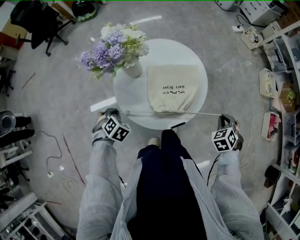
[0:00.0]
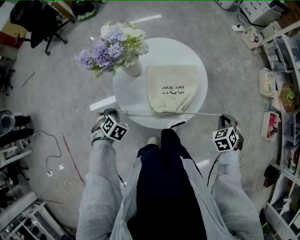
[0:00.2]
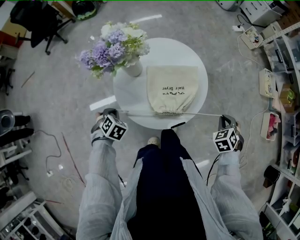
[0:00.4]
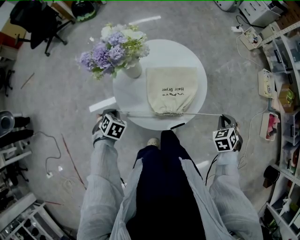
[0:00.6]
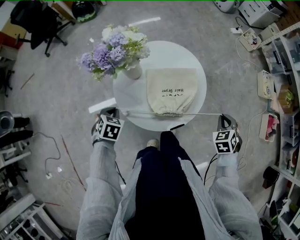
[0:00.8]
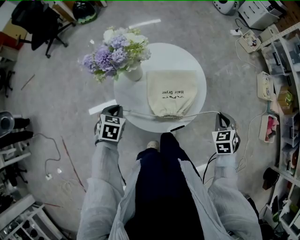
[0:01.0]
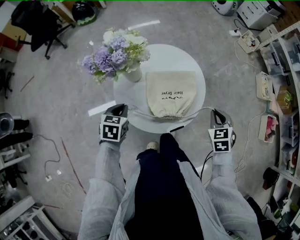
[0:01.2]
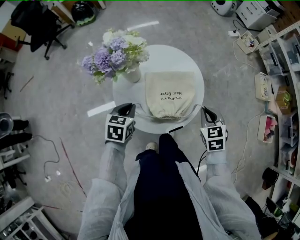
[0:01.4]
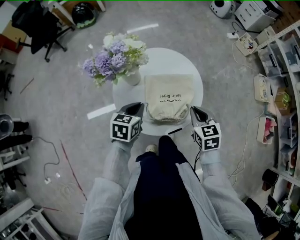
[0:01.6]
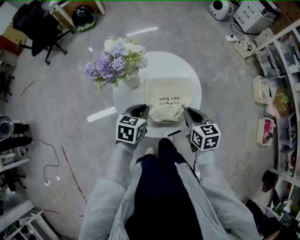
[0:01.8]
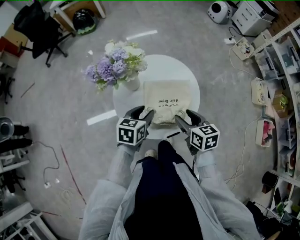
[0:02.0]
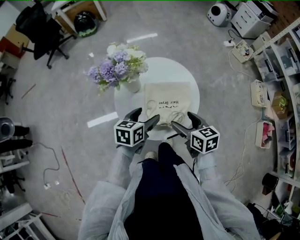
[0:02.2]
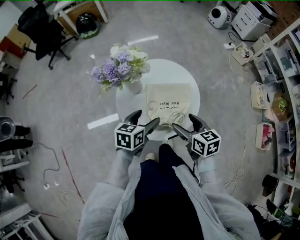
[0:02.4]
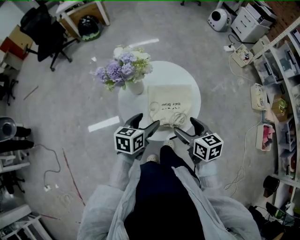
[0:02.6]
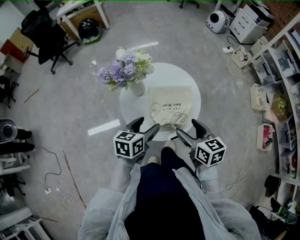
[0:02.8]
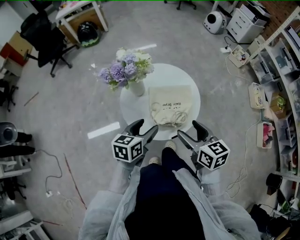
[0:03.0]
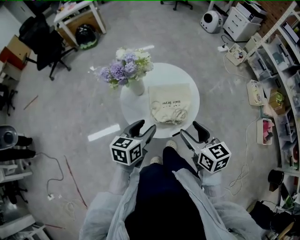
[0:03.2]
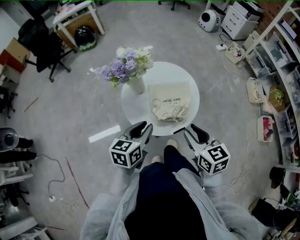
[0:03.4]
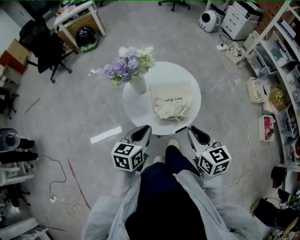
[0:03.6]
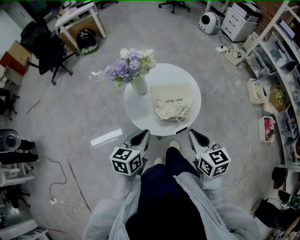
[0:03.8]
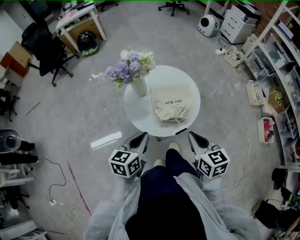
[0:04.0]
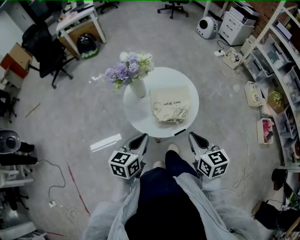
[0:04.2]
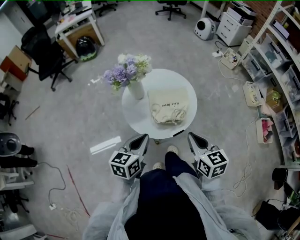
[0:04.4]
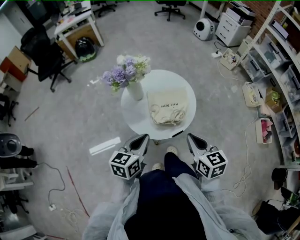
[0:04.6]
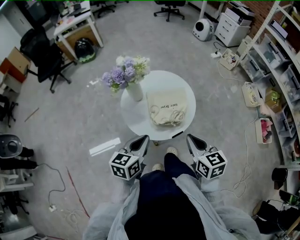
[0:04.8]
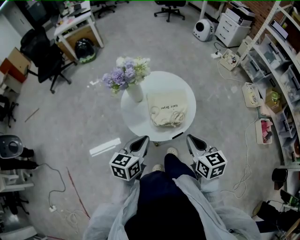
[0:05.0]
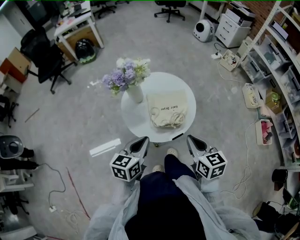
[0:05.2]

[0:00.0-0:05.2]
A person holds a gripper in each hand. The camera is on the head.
0:00.0 to 0:01.8: The left gripper heads to the right, upward and forward, covering some 20 cm, and turns by roughly 50 degrees. The right gripper moves to the left and upward, some 20 cm, and changes its angle by some 60 degrees.
0:01.8 to 0:03.4: The two grippers go roughly 15 cm backward and upward. The right gripper opens and closes again, while the left gripper opens, then closes again.
0:03.4 to 0:05.2: The right gripper closes its fingers.

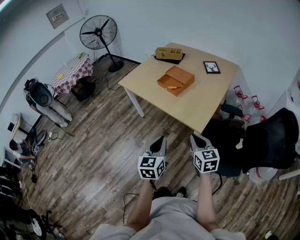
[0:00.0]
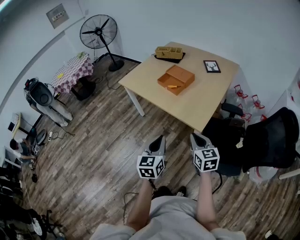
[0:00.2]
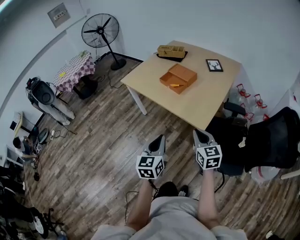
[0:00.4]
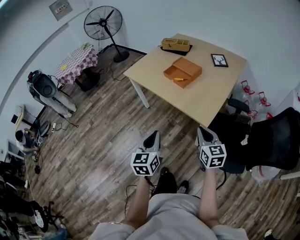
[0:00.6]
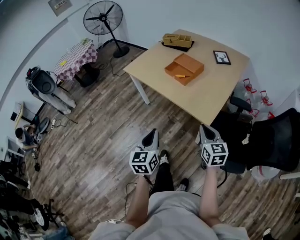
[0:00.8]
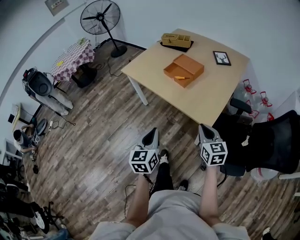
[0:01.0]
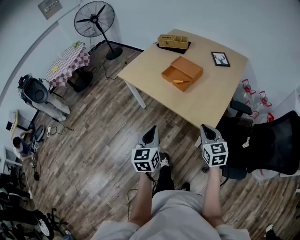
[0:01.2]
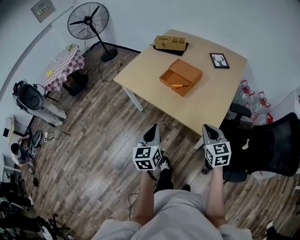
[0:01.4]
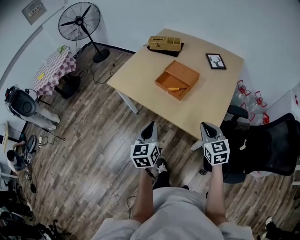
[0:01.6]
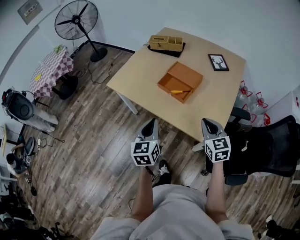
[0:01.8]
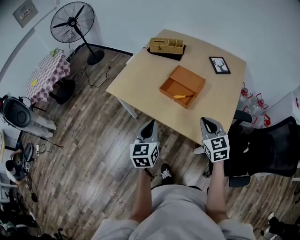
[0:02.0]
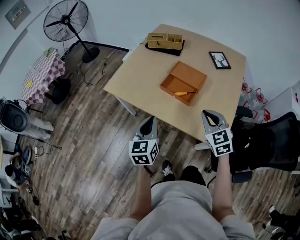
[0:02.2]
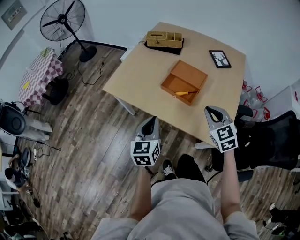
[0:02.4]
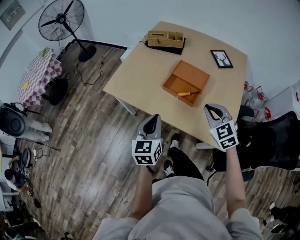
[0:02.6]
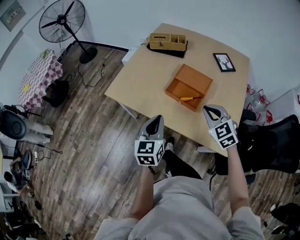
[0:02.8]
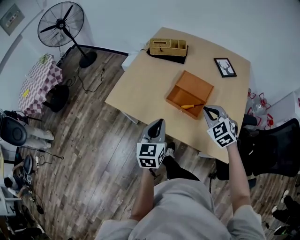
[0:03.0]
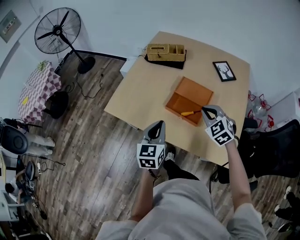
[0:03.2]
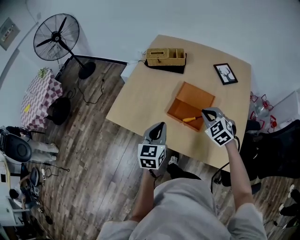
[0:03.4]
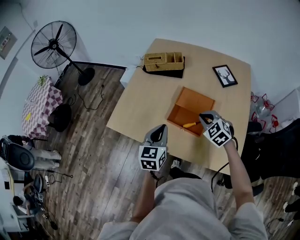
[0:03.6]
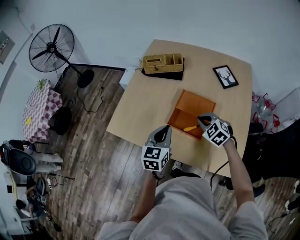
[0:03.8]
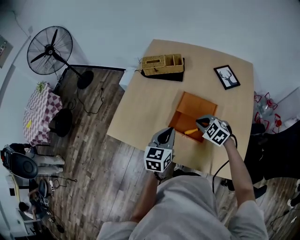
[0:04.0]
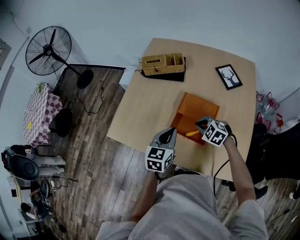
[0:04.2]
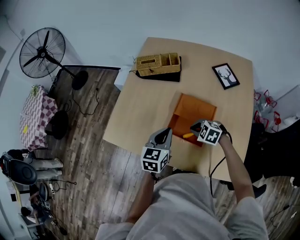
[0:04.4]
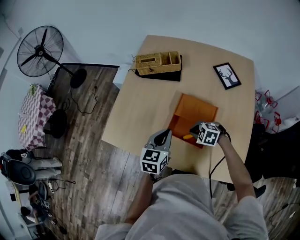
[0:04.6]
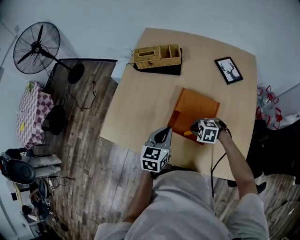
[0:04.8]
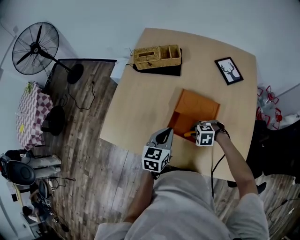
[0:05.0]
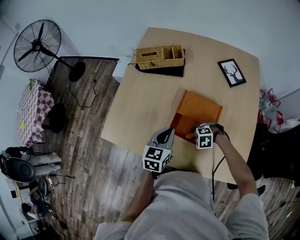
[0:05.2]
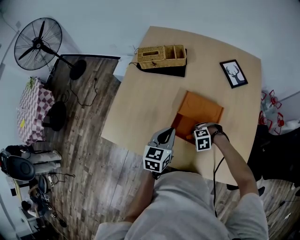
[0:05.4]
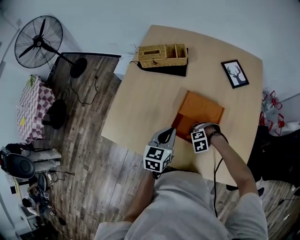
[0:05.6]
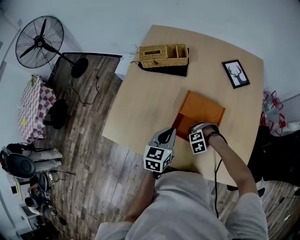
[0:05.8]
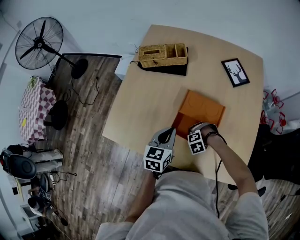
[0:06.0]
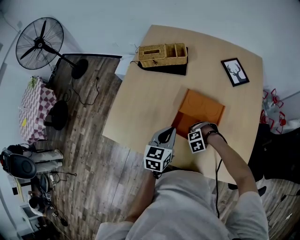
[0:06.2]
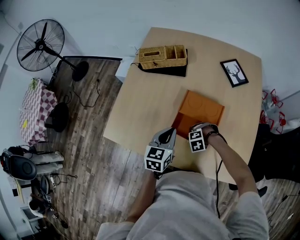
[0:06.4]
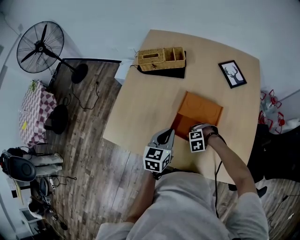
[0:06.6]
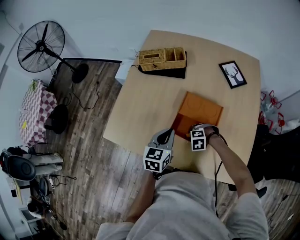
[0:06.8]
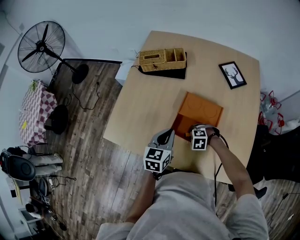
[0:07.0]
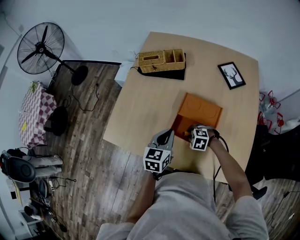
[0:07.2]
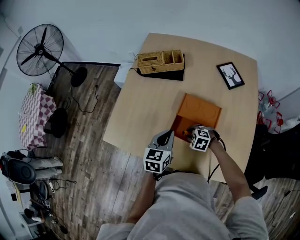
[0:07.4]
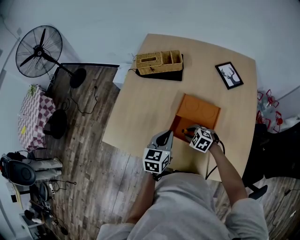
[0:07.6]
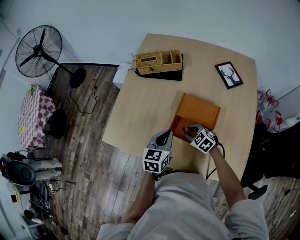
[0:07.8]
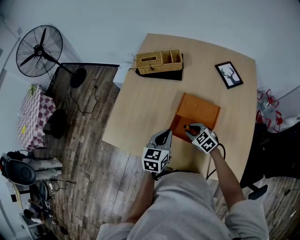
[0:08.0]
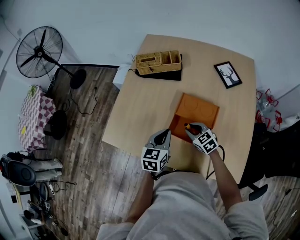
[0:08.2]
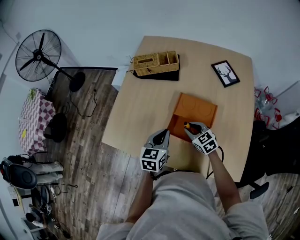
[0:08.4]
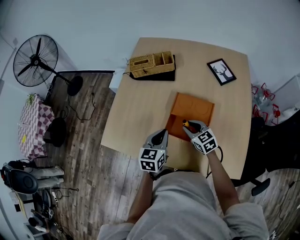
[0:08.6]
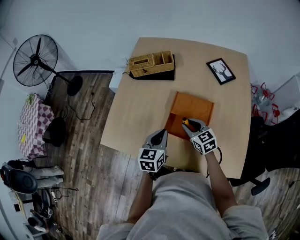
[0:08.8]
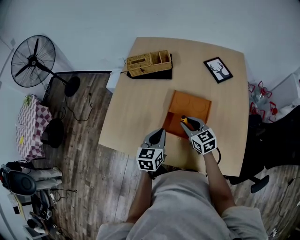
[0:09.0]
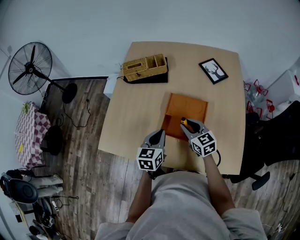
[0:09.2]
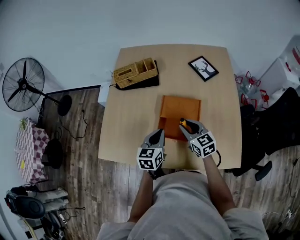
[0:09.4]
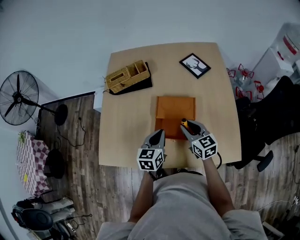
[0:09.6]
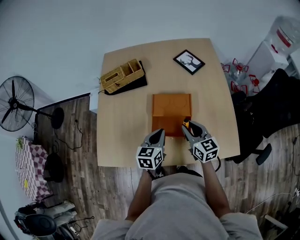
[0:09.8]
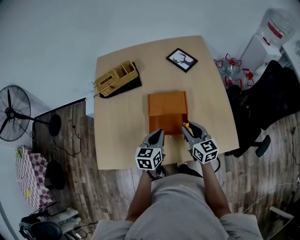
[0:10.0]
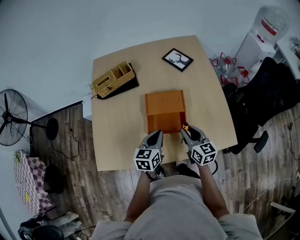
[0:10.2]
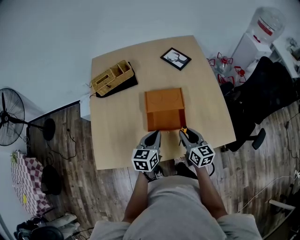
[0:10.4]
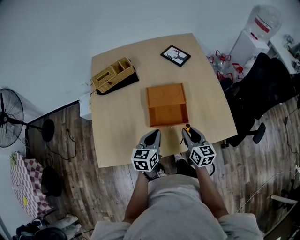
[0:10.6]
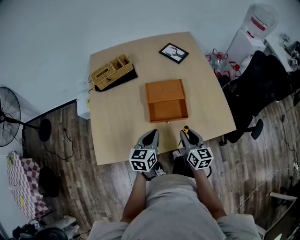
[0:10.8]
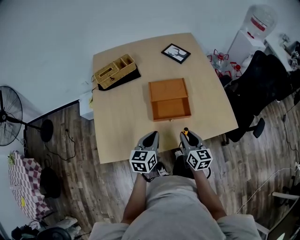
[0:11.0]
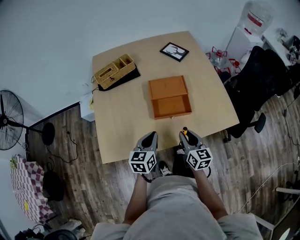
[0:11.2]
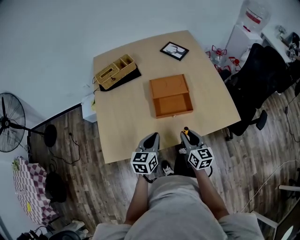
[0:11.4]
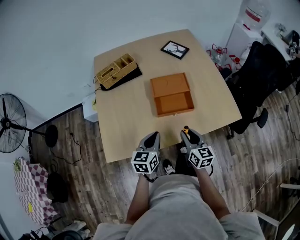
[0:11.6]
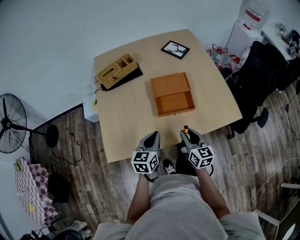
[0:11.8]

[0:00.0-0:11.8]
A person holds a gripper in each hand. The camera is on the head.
0:00.0 to 0:01.4: The right gripper shifts about 15 cm forward; the left gripper moves forward and to the left, approximately 20 cm.
0:01.4 to 0:03.0: The left gripper travels forward by some 25 cm; the right gripper shifts approximately 30 cm forward and to the left, and turns by approximately 30 degrees.
0:03.0 to 0:04.4: The right gripper is displaced downward and forward by roughly 20 cm, and turns by about 30 degrees; the left gripper shifts about 20 cm forward.
0:04.4 to 0:06.0: The left gripper is displaced downward by some 5 cm, while the right gripper shifts roughly 15 cm downward, changes its angle by about 50 degrees, and opens its fingers.
0:06.0 to 0:07.4: The right gripper goes approximately 5 cm upward, and turns by about 40 degrees.
0:07.4 to 0:08.8: The right gripper travels upward by about 10 cm, and tips its fingers upward by approximately 40 degrees.
0:08.8 to 0:10.4: The right gripper shifts by some 15 cm, and swivels about 40 degrees. The left gripper changes its angle by some 20 degrees.
0:10.4 to 0:11.8: The two grippers go about 15 cm backward and to the left.

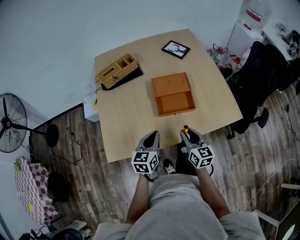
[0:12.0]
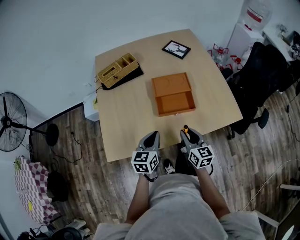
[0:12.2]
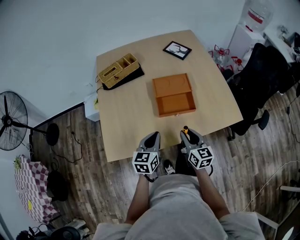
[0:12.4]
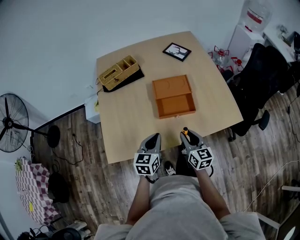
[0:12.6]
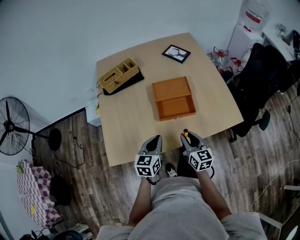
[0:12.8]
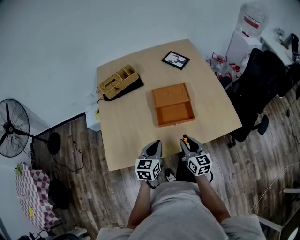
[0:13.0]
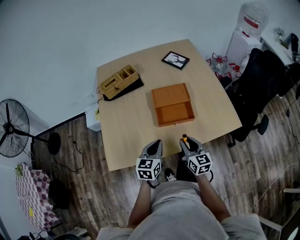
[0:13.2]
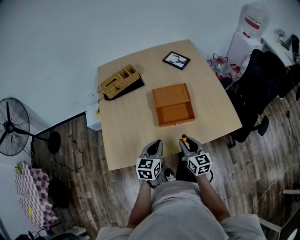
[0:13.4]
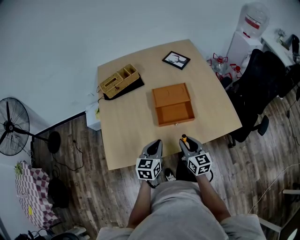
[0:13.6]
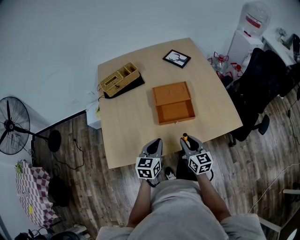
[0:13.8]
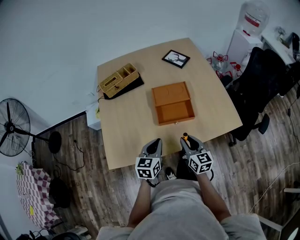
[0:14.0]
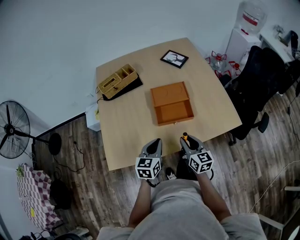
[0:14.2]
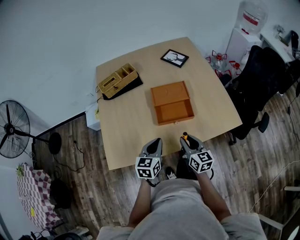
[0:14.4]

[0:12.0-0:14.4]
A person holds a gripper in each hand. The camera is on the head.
0:12.0 to 0:13.2: The grippers stay close to where they were, moving slightly.
0:13.2 to 0:14.4: Neither gripper changes place.

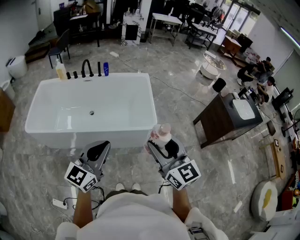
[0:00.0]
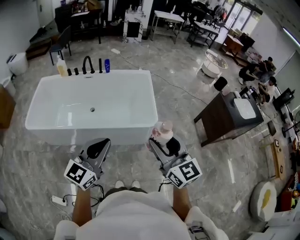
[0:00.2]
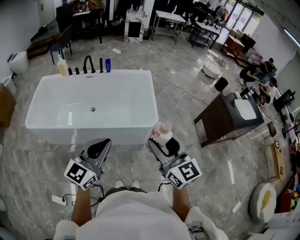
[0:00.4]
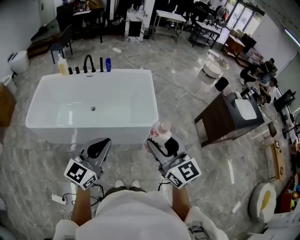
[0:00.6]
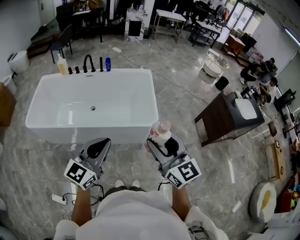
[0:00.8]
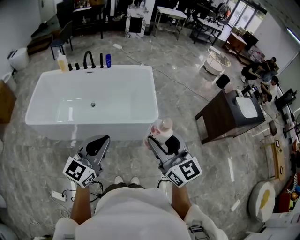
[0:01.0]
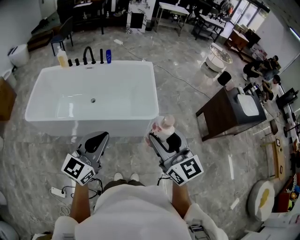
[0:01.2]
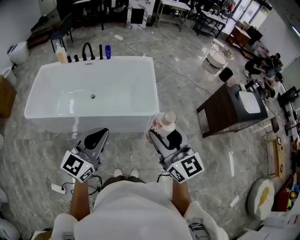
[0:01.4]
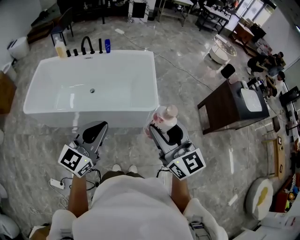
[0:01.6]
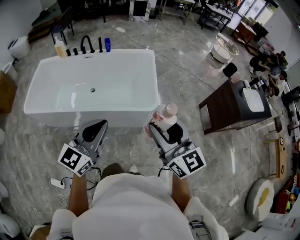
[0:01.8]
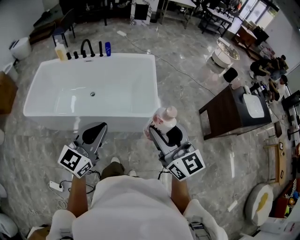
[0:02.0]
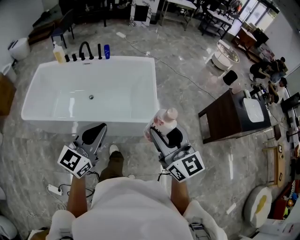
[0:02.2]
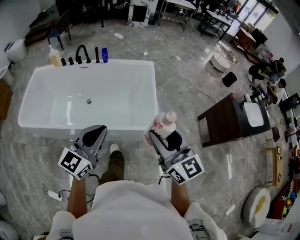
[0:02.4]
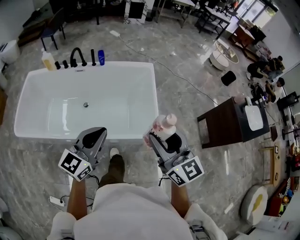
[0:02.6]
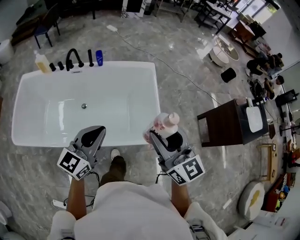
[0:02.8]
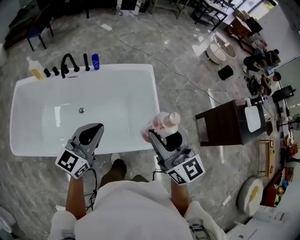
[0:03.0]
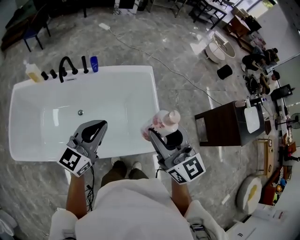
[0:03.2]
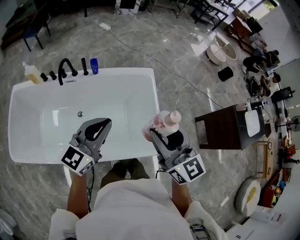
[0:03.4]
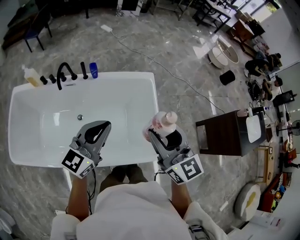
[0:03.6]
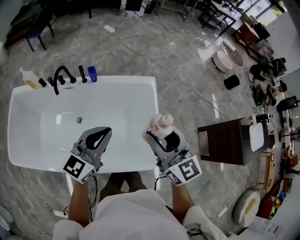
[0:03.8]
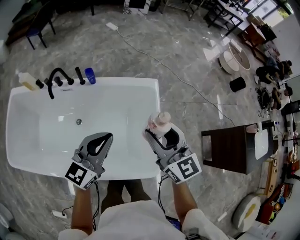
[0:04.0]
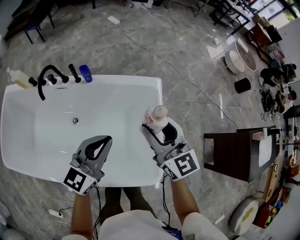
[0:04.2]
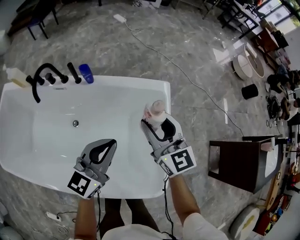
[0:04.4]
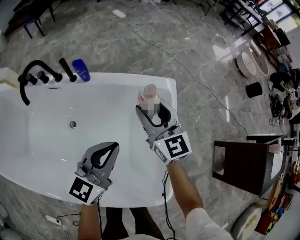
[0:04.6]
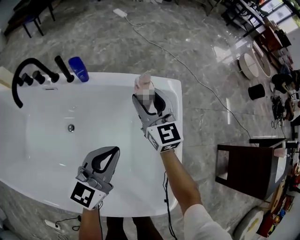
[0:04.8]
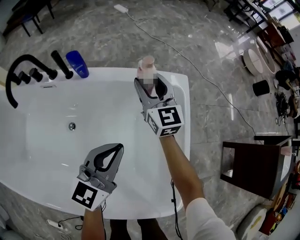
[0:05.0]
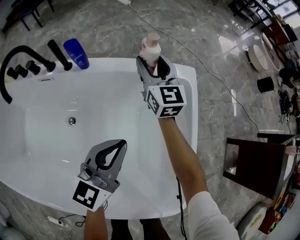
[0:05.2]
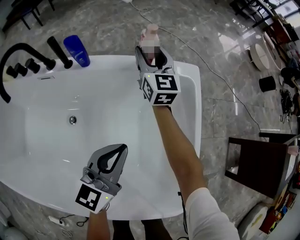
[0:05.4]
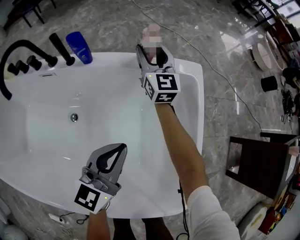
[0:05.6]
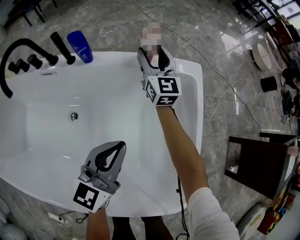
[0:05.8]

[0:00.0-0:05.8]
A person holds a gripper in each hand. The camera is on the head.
0:00.0 to 0:01.4: The grippers stay close to where they were, moving slightly.
0:01.4 to 0:02.8: The two grippers go some 35 cm forward.
0:02.8 to 0:04.4: The grippers both shift forward and downward by roughly 40 cm.
0:04.4 to 0:05.8: The left gripper is displaced downward by some 20 cm, while the right gripper goes about 35 cm forward and downward.
